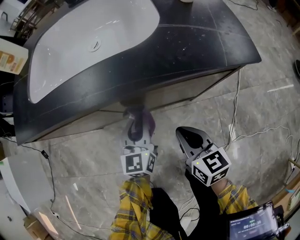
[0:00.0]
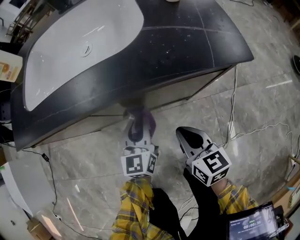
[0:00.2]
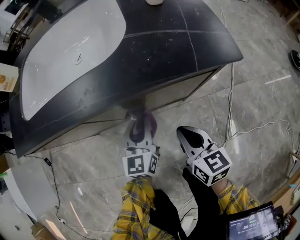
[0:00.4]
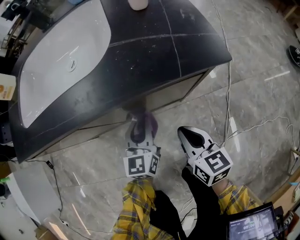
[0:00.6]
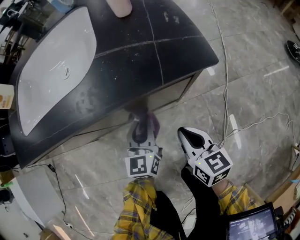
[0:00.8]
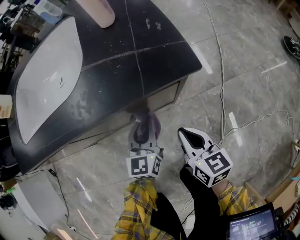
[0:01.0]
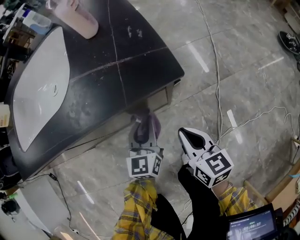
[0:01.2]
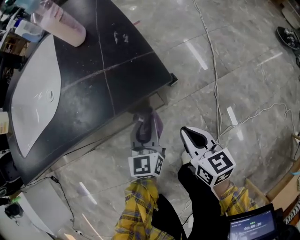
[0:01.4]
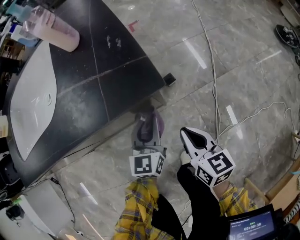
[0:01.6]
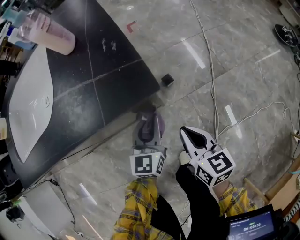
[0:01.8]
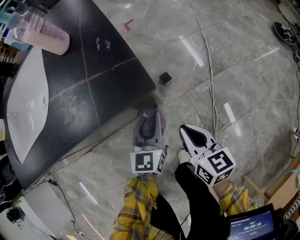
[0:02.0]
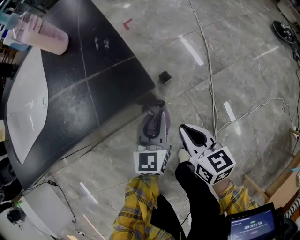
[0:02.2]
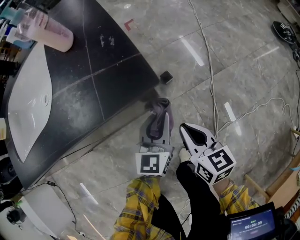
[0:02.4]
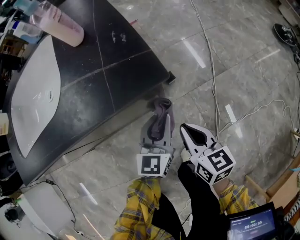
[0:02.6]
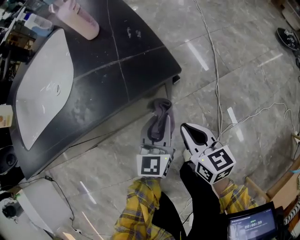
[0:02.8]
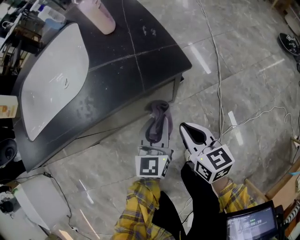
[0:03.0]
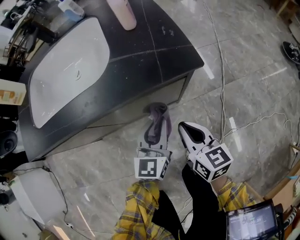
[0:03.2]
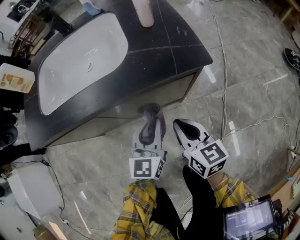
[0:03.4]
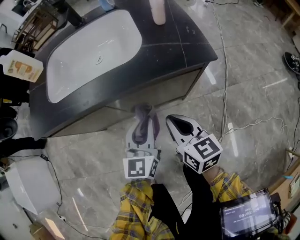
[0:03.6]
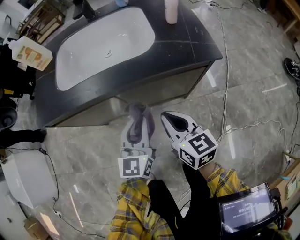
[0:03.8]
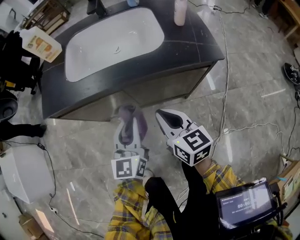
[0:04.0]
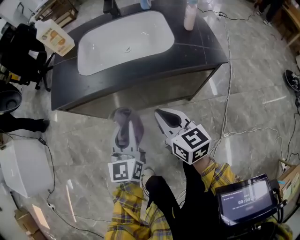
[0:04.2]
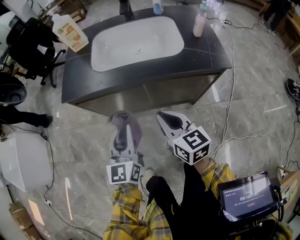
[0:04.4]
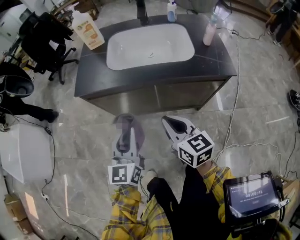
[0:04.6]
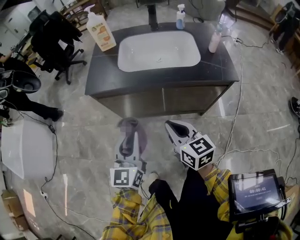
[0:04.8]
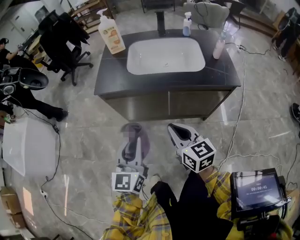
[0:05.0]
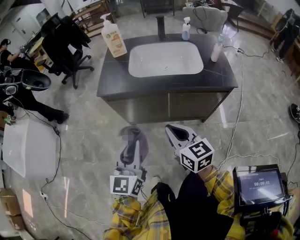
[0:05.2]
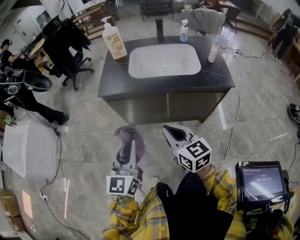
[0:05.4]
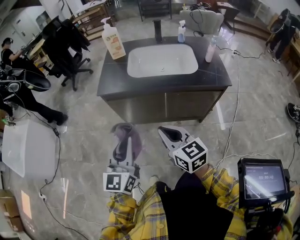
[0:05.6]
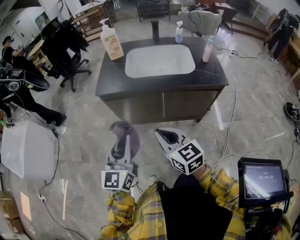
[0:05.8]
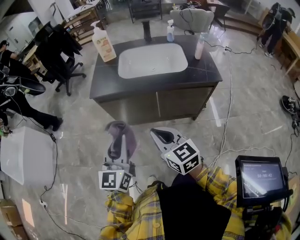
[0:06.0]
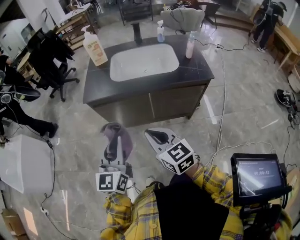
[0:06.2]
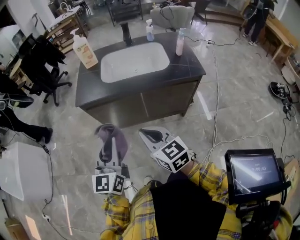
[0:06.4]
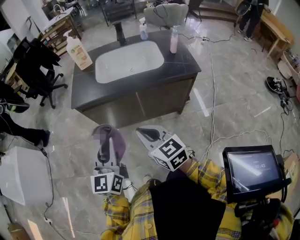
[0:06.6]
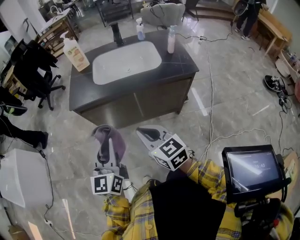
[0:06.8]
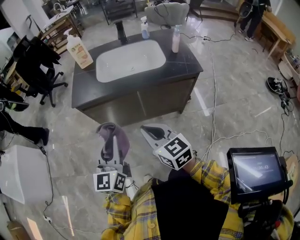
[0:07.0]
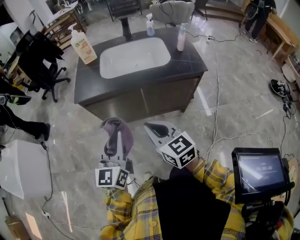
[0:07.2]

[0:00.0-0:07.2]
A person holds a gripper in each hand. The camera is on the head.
0:00.0 to 0:01.4: The grippers both shift to the right by about 20 cm.
0:01.4 to 0:02.8: The left gripper moves roughly 5 cm.
0:02.8 to 0:04.4: The left gripper ends up about 50 cm from where it was, and swivels roughly 30 degrees; the right gripper changes place by approximately 40 cm, and changes its angle by approximately 30 degrees.
0:04.4 to 0:05.8: The left gripper moves upward, backward and to the left, some 20 cm. The right gripper moves to the left, upward and backward, about 20 cm.
0:05.8 to 0:07.2: The left gripper changes place by approximately 5 cm.

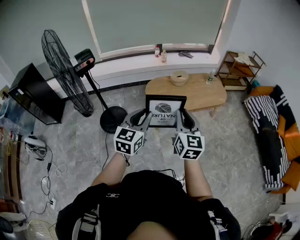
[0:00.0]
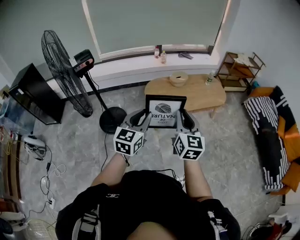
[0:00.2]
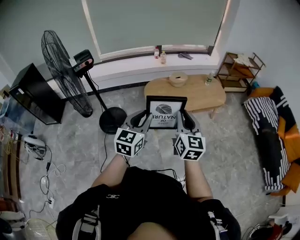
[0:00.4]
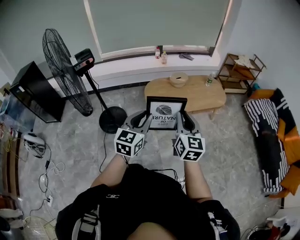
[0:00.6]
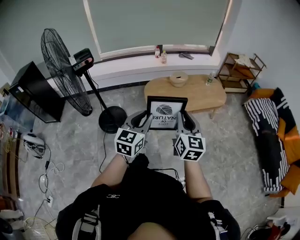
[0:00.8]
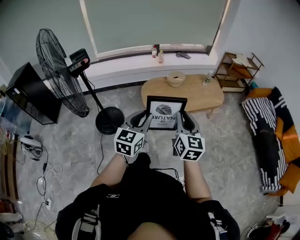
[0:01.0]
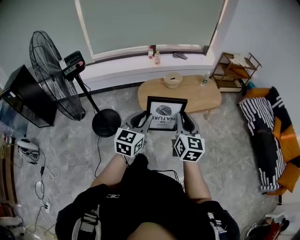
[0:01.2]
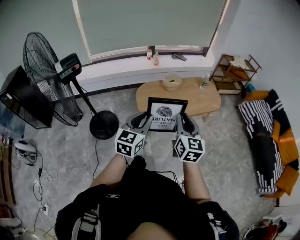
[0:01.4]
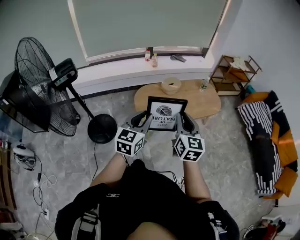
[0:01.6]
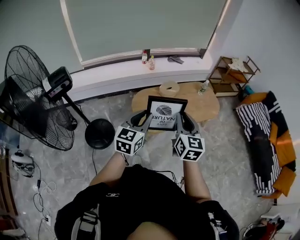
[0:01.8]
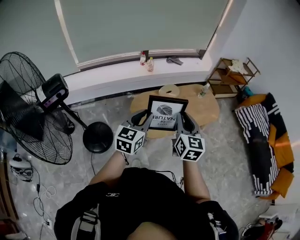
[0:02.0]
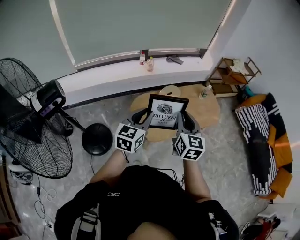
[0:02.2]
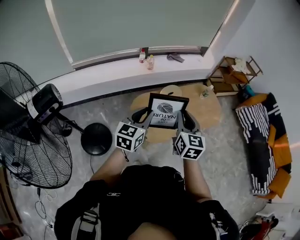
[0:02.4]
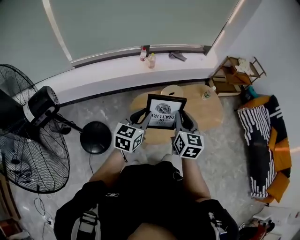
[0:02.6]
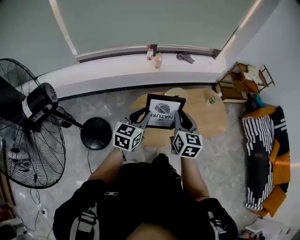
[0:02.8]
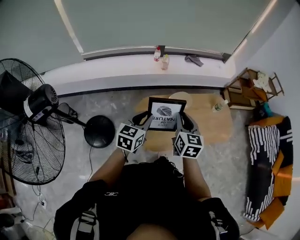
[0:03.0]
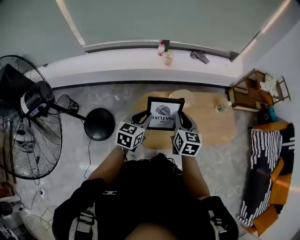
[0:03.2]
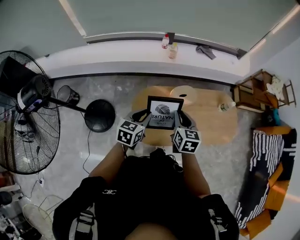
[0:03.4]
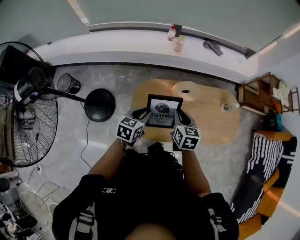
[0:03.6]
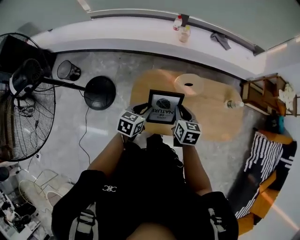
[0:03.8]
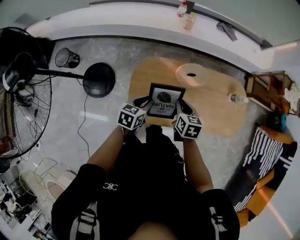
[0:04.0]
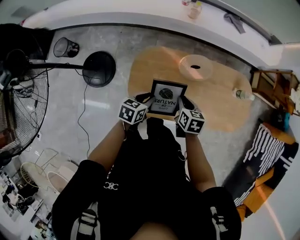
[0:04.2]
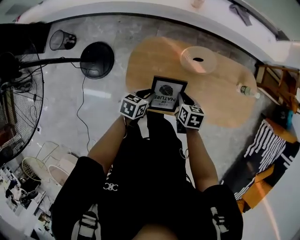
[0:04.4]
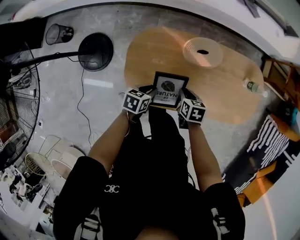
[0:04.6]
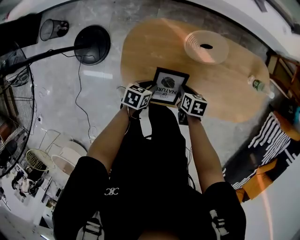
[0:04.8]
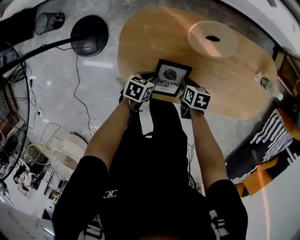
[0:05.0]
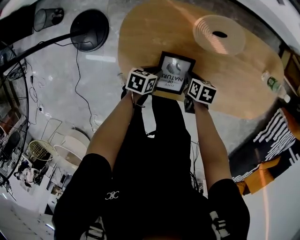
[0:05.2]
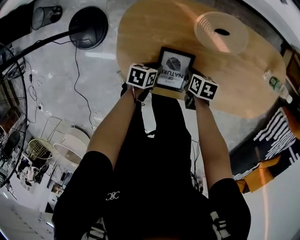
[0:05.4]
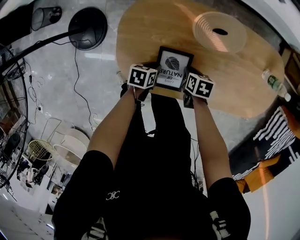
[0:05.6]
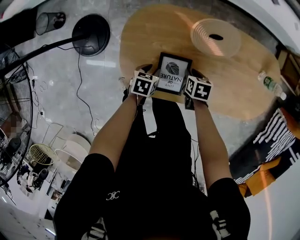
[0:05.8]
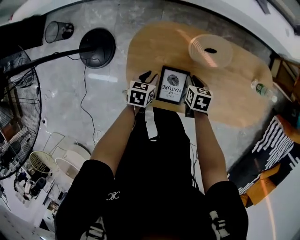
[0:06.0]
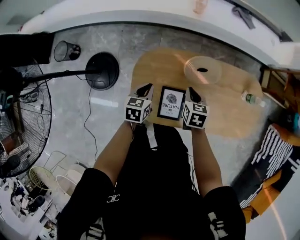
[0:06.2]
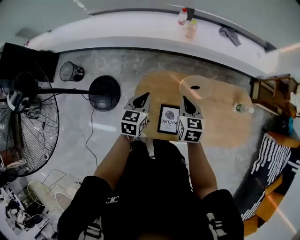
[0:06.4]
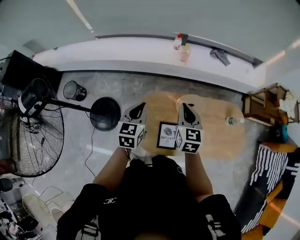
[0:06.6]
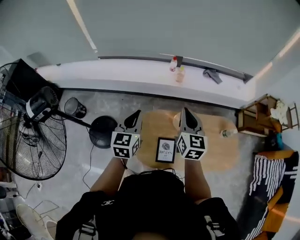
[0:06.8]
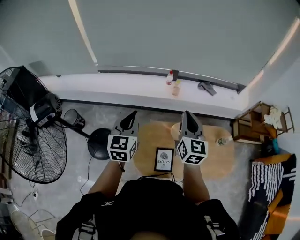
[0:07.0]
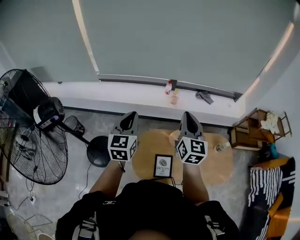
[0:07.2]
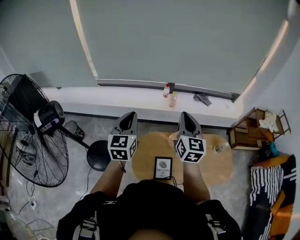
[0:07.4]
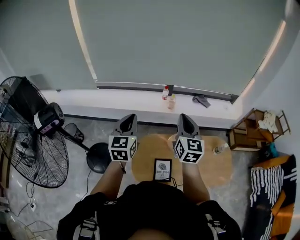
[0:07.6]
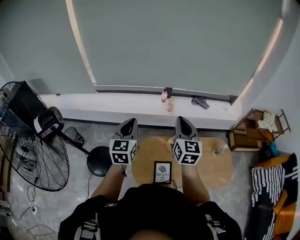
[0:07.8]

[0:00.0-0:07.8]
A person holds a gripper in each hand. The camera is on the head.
0:00.0 to 0:01.6: Both grippers travel together forward, approximately 20 cm.
0:01.6 to 0:03.2: The pair of grippers is taken forward, roughly 50 cm. The left gripper swivels approximately 20 degrees. Meanwhile the right gripper rotates roughly 20 degrees.
0:03.2 to 0:04.6: The two grippers go approximately 40 cm downward. The right gripper angles its fingers downward, by some 40 degrees. Meanwhile the left gripper rotates some 40 degrees.
0:04.6 to 0:06.2: The left gripper moves approximately 20 cm downward and comes back, and swivels approximately 20 degrees. The right gripper moves some 20 cm downward and comes back.
0:06.2 to 0:07.8: Both grippers travel together upward, roughly 50 cm. The left gripper points its fingers approximately 40 degrees further upward. The right gripper points its fingers approximately 50 degrees further upward.

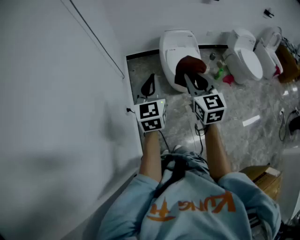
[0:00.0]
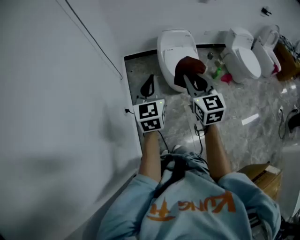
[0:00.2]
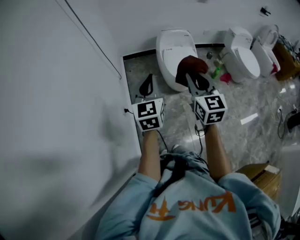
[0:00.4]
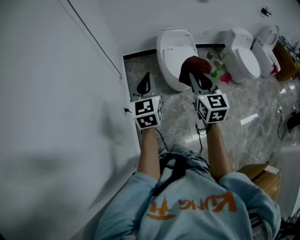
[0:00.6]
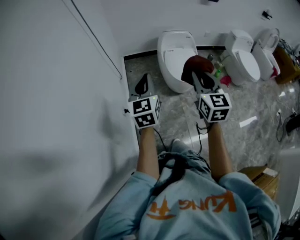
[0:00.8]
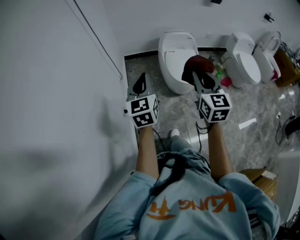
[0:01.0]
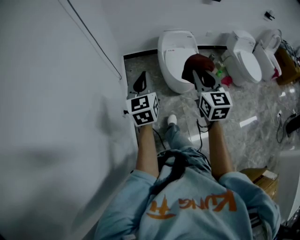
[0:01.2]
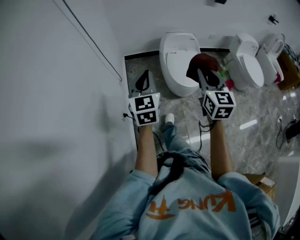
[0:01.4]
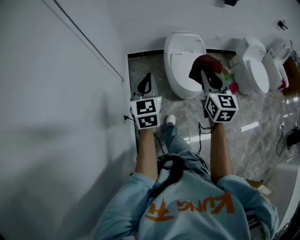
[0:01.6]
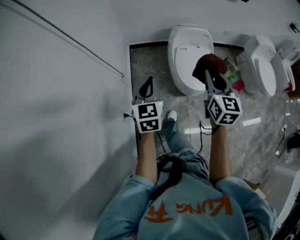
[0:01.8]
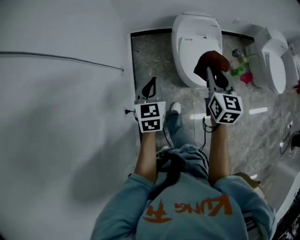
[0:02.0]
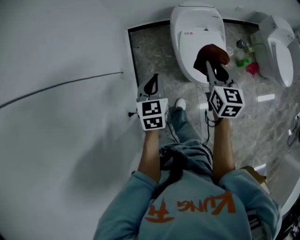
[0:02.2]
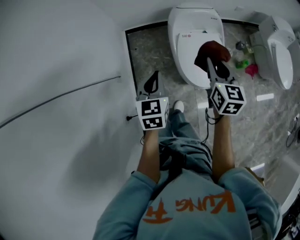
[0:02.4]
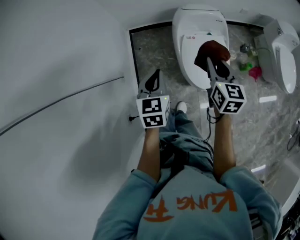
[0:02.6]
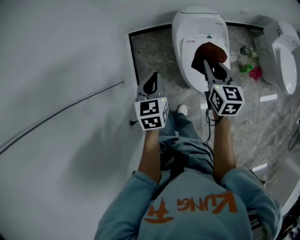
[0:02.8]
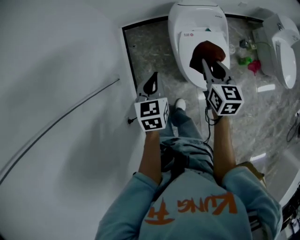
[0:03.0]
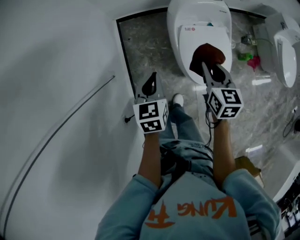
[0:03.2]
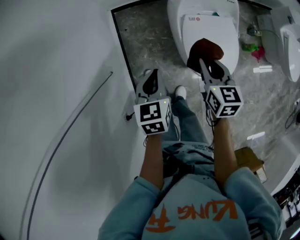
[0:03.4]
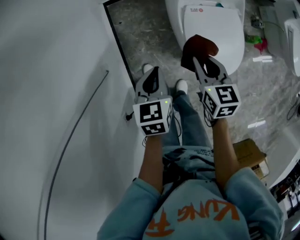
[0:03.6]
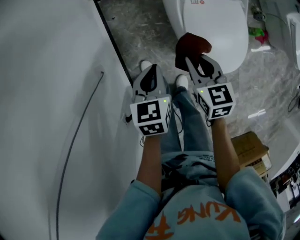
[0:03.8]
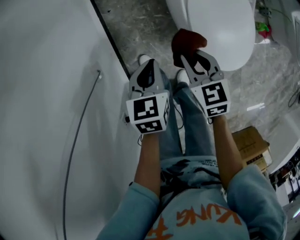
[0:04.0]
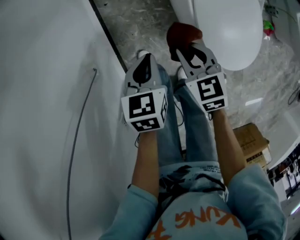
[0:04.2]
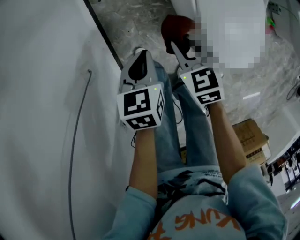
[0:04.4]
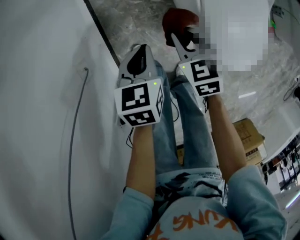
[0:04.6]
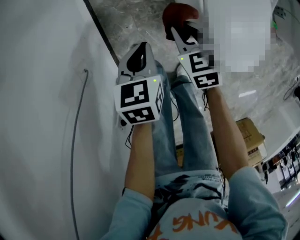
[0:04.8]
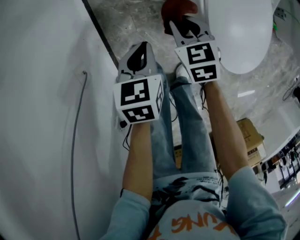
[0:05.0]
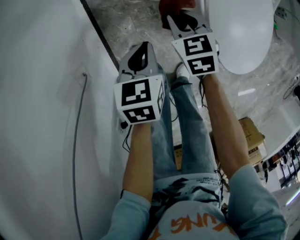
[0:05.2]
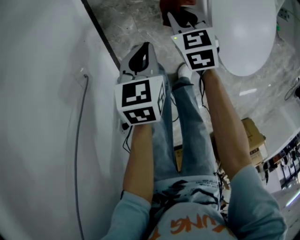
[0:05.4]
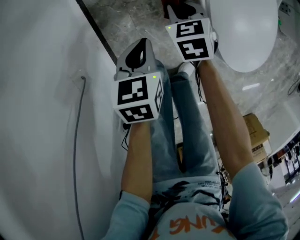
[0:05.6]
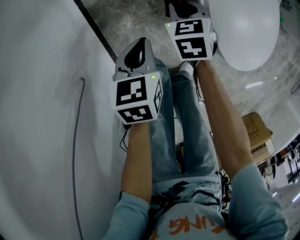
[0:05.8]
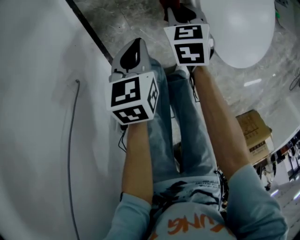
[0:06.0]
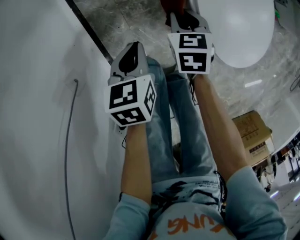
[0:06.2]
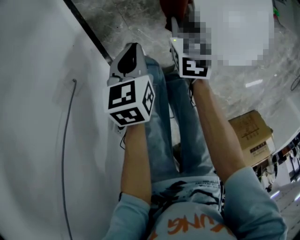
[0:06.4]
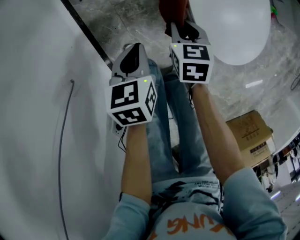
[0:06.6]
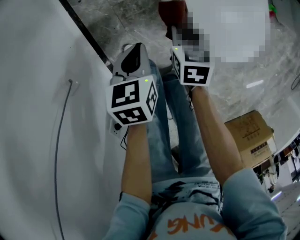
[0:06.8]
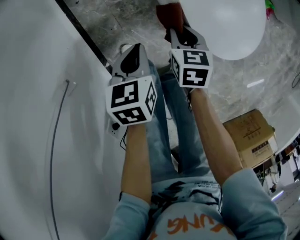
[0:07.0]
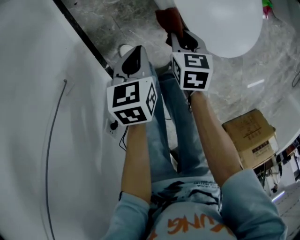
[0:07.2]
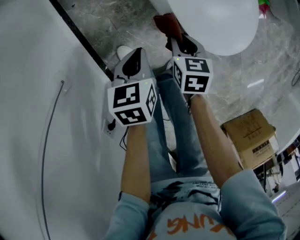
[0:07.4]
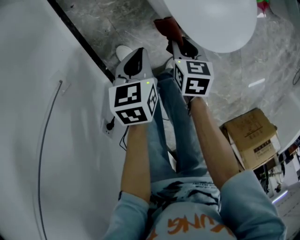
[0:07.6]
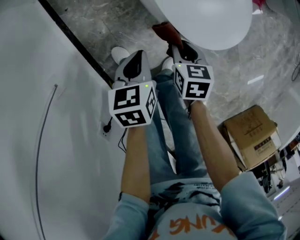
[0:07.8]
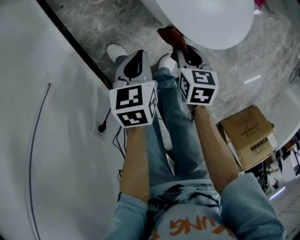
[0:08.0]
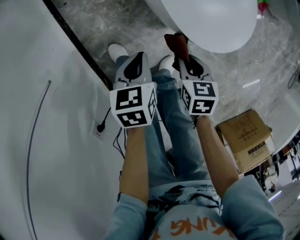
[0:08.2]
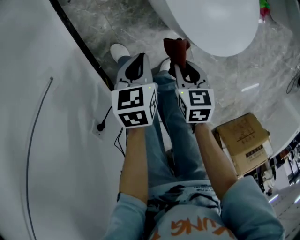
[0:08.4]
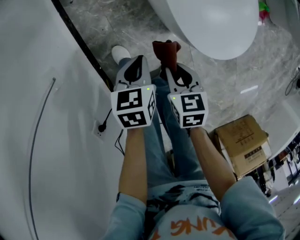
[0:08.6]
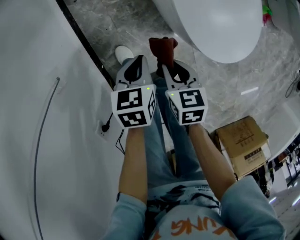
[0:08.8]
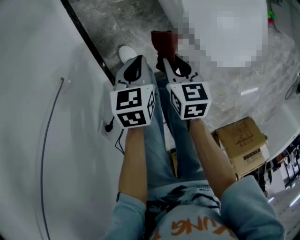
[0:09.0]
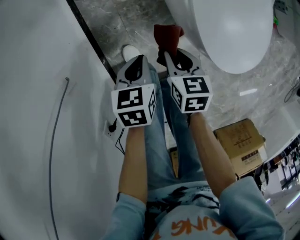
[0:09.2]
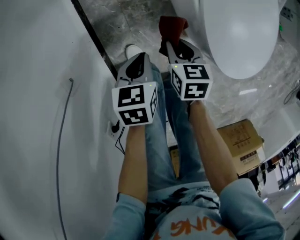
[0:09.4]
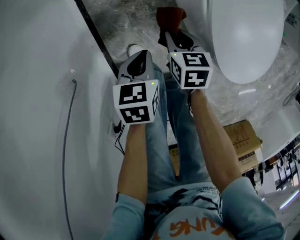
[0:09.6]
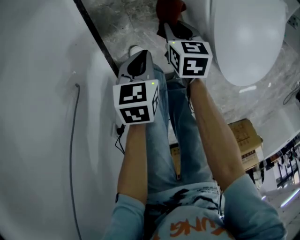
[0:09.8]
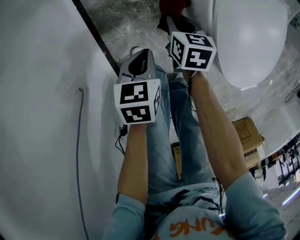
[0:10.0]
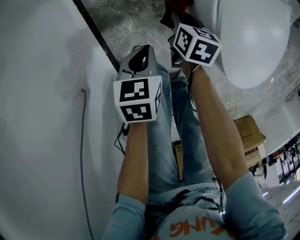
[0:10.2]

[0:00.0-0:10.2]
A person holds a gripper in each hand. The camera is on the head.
0:00.0 to 0:01.4: The left gripper heads forward, covering approximately 10 cm. The right gripper moves forward and to the right, about 10 cm.
0:01.4 to 0:03.0: The grippers both shift forward and downward by roughly 40 cm. The right gripper rotates approximately 20 degrees. The left gripper turns by roughly 30 degrees.
0:03.0 to 0:04.4: The right gripper moves downward and to the left, about 40 cm, and turns by roughly 30 degrees; the left gripper travels downward by approximately 35 cm, and rotates approximately 20 degrees.
0:04.4 to 0:05.8: The right gripper is displaced downward and forward by approximately 15 cm, while the left gripper goes approximately 5 cm downward.
0:05.8 to 0:07.2: The right gripper heads to the right and backward, covering some 15 cm, and swivels approximately 20 degrees. Meanwhile the left gripper heads to the right, covering roughly 10 cm.
0:07.2 to 0:08.8: The right gripper goes roughly 10 cm backward.
0:08.8 to 0:10.2: The right gripper shifts about 25 cm forward and downward; the left gripper moves forward and to the left, roughly 15 cm.
